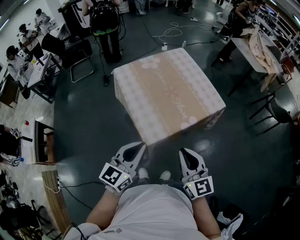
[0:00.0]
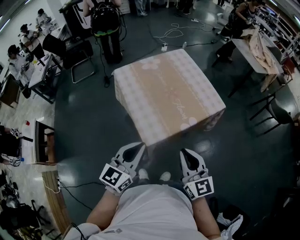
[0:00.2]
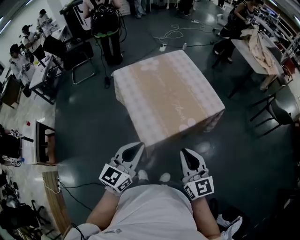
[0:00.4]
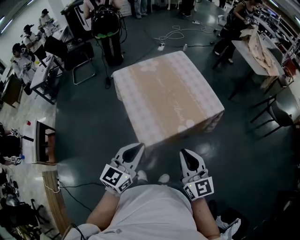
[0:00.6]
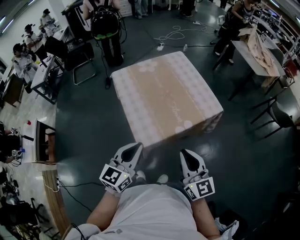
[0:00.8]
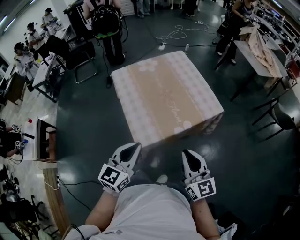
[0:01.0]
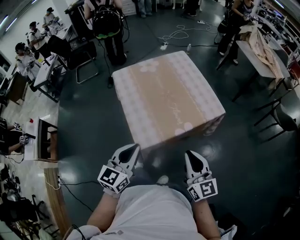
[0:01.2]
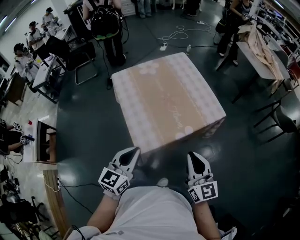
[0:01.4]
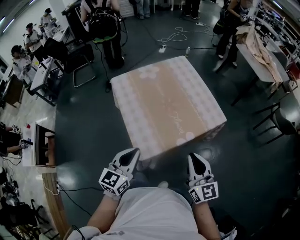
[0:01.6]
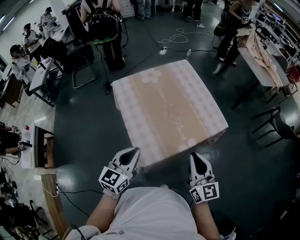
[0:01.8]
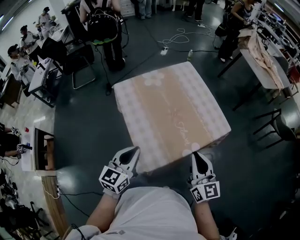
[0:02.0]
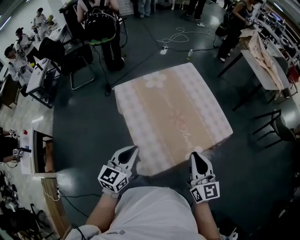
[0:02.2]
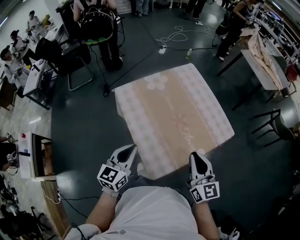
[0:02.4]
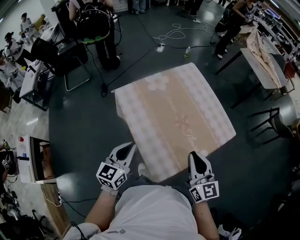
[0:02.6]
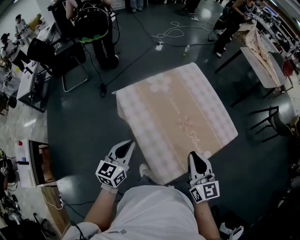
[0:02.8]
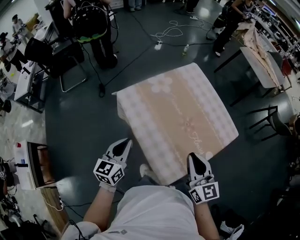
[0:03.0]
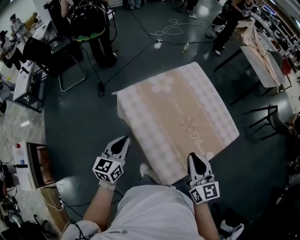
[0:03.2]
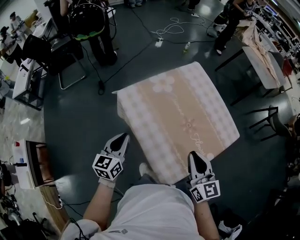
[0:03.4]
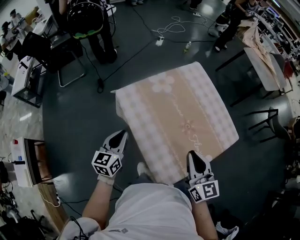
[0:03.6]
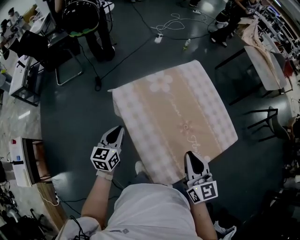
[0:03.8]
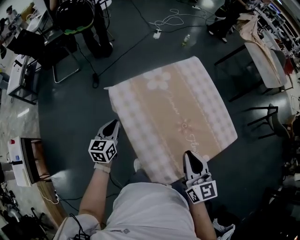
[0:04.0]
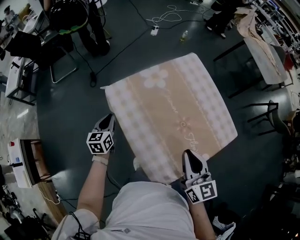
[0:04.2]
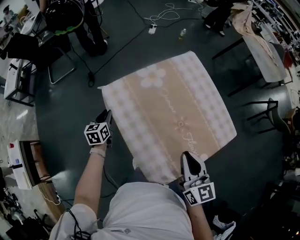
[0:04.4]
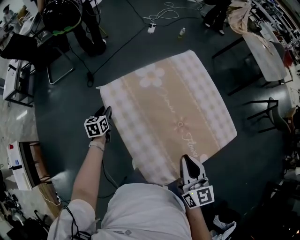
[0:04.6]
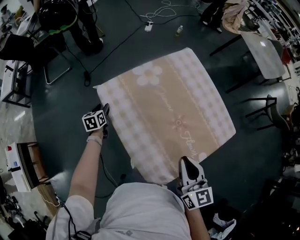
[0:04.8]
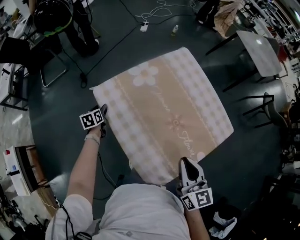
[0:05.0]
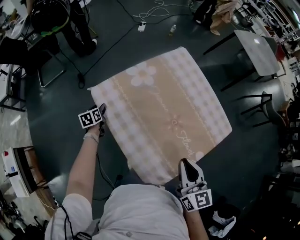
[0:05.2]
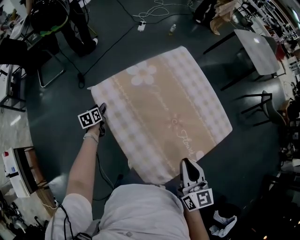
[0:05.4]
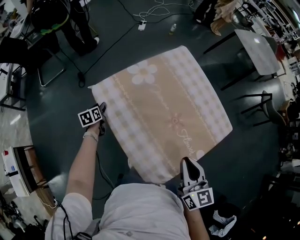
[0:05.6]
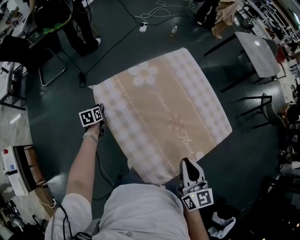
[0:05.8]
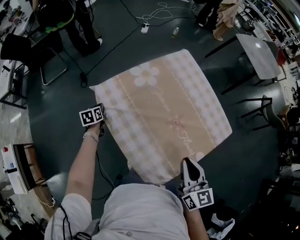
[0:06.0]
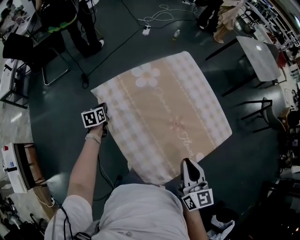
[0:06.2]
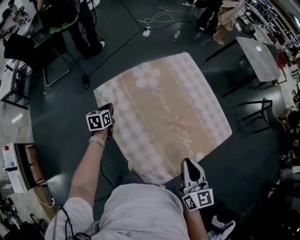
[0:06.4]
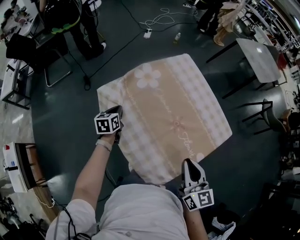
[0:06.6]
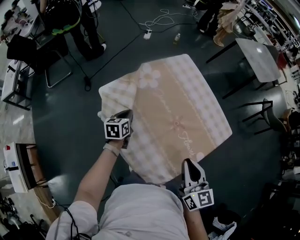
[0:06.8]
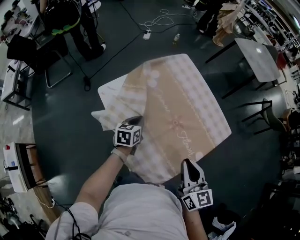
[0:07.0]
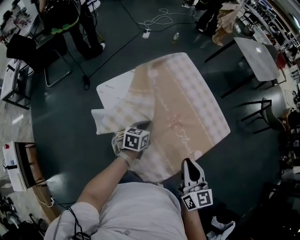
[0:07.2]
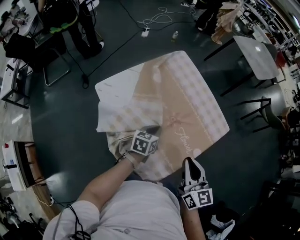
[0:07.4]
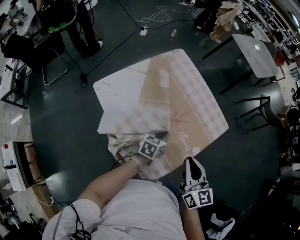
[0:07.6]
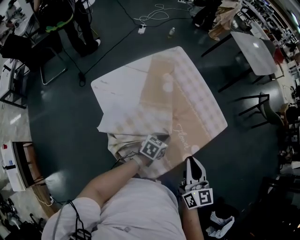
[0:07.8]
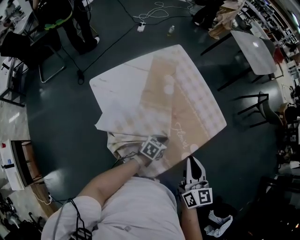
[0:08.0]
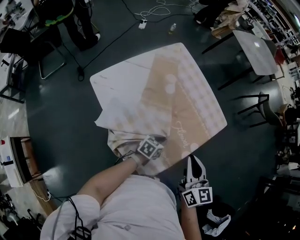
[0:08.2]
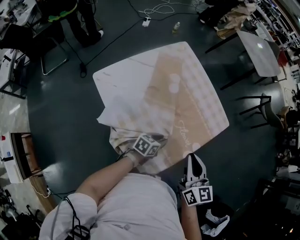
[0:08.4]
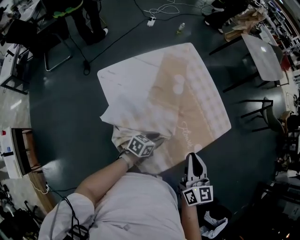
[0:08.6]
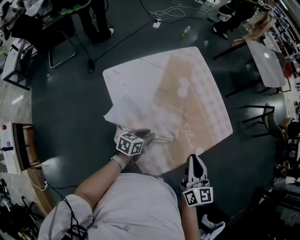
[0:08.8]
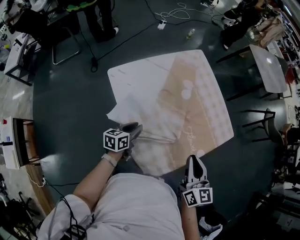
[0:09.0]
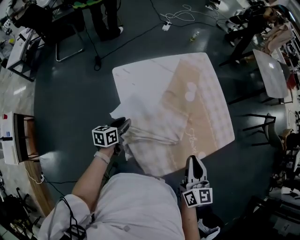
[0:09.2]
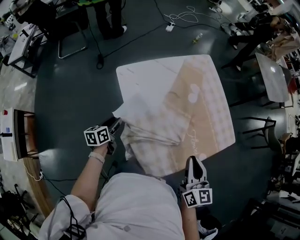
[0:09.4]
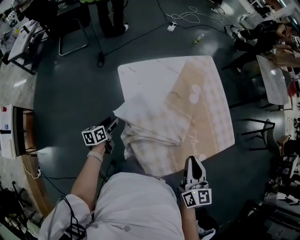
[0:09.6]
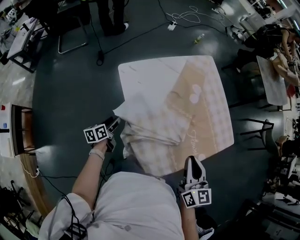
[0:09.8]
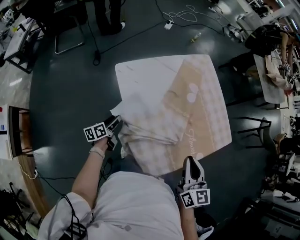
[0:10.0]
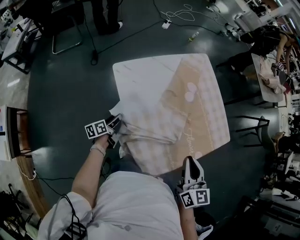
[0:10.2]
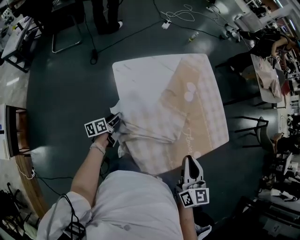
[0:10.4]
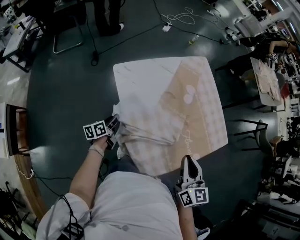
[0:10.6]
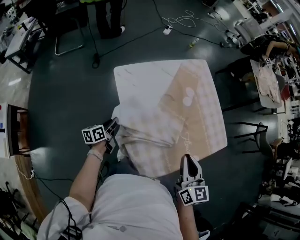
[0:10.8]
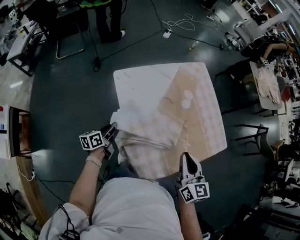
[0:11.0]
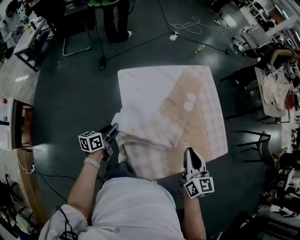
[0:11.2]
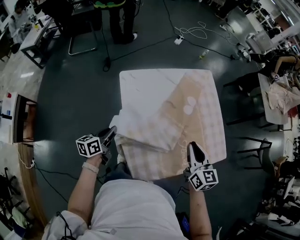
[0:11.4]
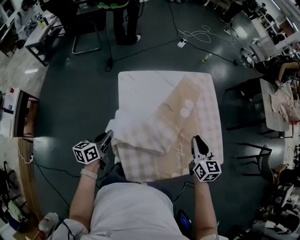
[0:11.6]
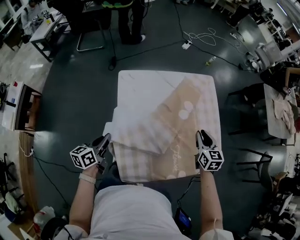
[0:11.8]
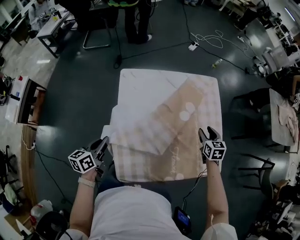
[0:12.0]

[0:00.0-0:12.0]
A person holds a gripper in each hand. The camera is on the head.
0:00.0 to 0:01.6: The right gripper travels forward and to the right by roughly 10 cm, while the left gripper travels forward by approximately 5 cm.
0:01.6 to 0:03.0: The grippers both shift to the left and forward by about 25 cm.
0:03.0 to 0:04.4: The right gripper goes some 5 cm forward, while the left gripper moves downward, forward and to the left, some 25 cm, and turns by approximately 30 degrees.
0:04.4 to 0:06.0: The left gripper shifts approximately 10 cm downward, and opens, then closes again.
0:06.0 to 0:07.6: The left gripper moves to the right, roughly 40 cm, and changes its angle by about 40 degrees. The right gripper ends up approximately 5 cm from where it was.
0:07.6 to 0:09.0: The left gripper shifts approximately 20 cm to the left and backward, turns by approximately 30 degrees, and opens up.
0:09.0 to 0:10.4: The left gripper shifts about 15 cm to the left and downward, turns by approximately 30 degrees, and opens up.
0:10.4 to 0:12.0: The left gripper goes approximately 20 cm upward and backward, rotates about 20 degrees, and closes up. Meanwhile the right gripper heads forward, to the right and downward, covering about 35 cm, changes its angle by about 30 degrees, and opens.

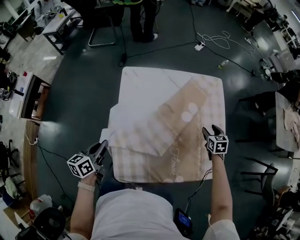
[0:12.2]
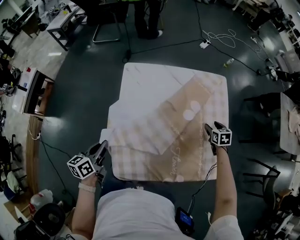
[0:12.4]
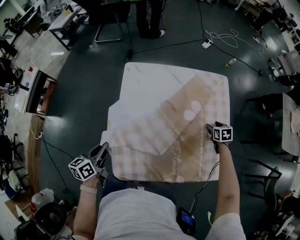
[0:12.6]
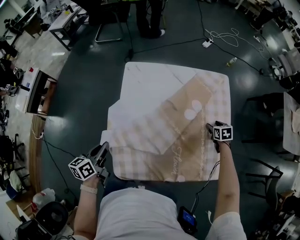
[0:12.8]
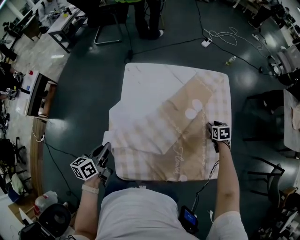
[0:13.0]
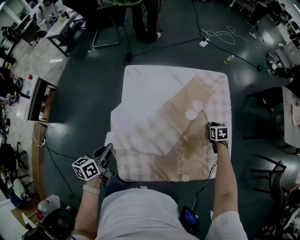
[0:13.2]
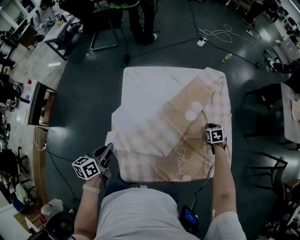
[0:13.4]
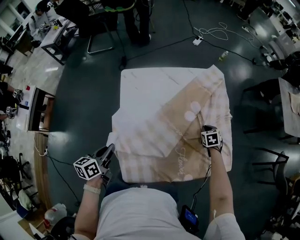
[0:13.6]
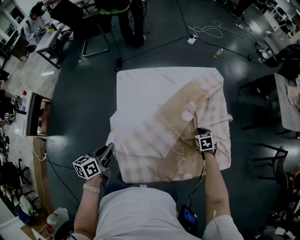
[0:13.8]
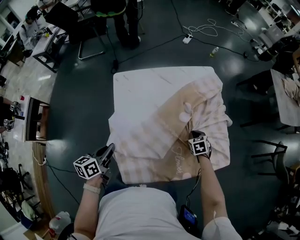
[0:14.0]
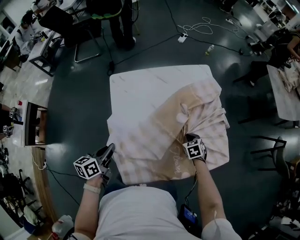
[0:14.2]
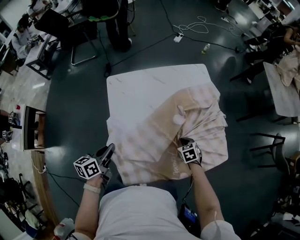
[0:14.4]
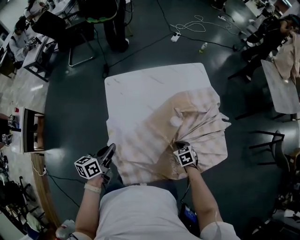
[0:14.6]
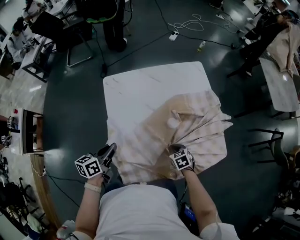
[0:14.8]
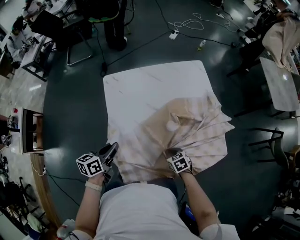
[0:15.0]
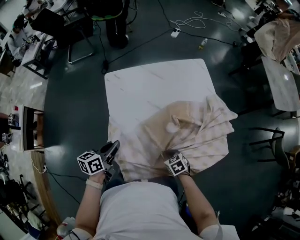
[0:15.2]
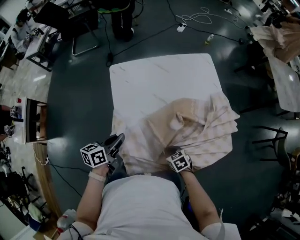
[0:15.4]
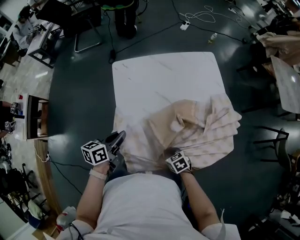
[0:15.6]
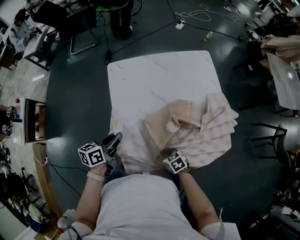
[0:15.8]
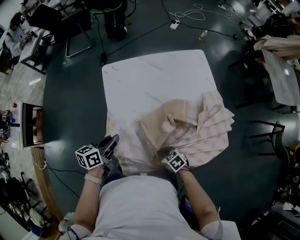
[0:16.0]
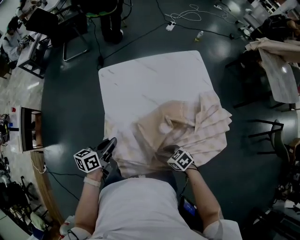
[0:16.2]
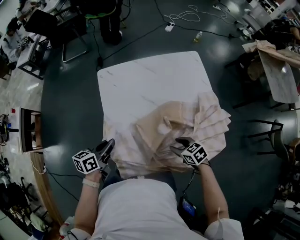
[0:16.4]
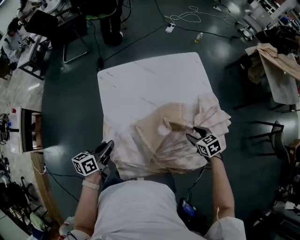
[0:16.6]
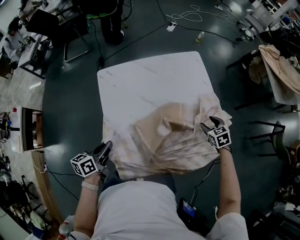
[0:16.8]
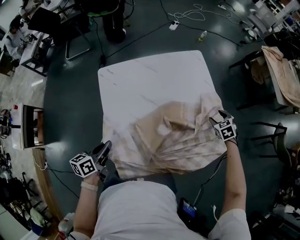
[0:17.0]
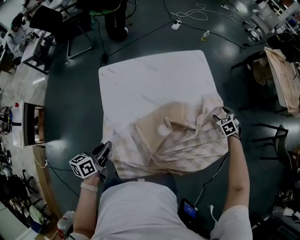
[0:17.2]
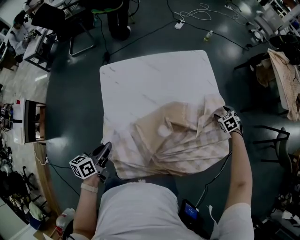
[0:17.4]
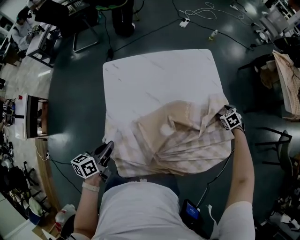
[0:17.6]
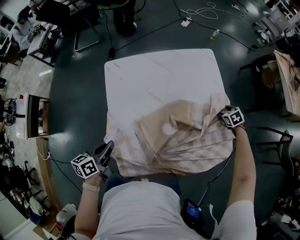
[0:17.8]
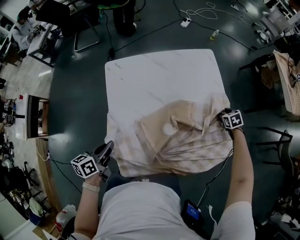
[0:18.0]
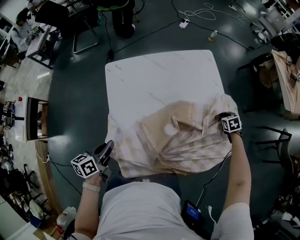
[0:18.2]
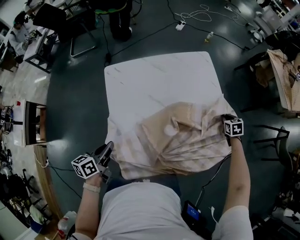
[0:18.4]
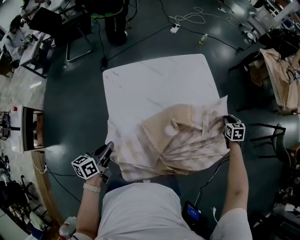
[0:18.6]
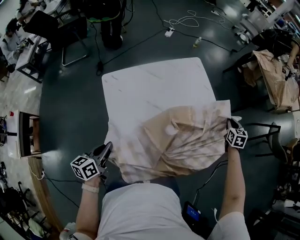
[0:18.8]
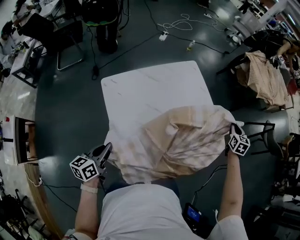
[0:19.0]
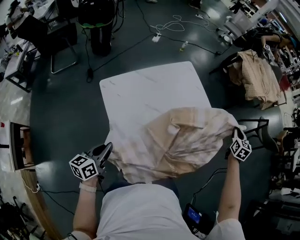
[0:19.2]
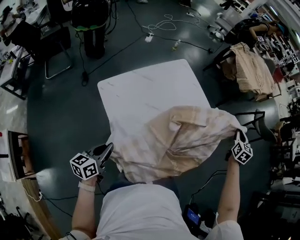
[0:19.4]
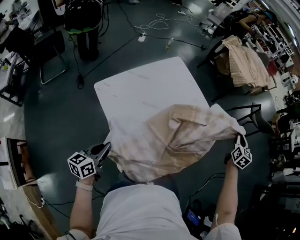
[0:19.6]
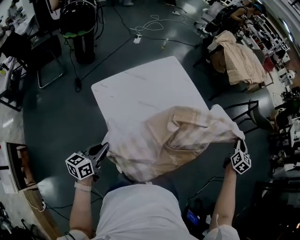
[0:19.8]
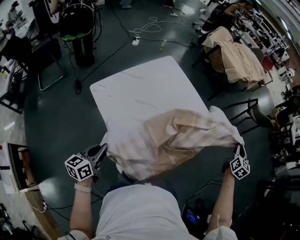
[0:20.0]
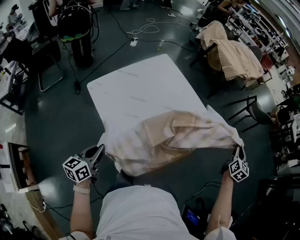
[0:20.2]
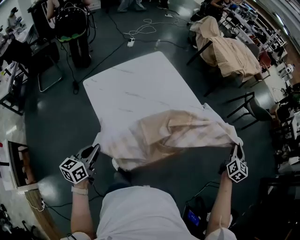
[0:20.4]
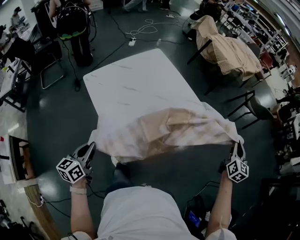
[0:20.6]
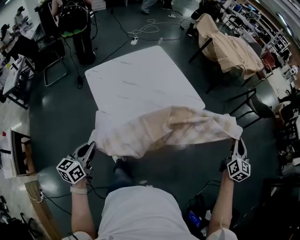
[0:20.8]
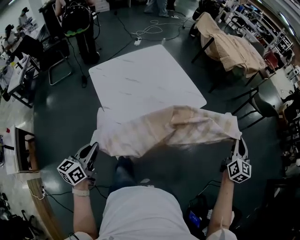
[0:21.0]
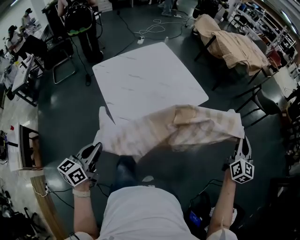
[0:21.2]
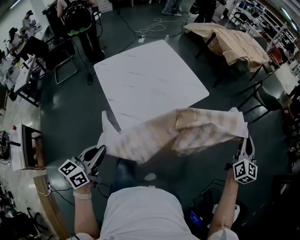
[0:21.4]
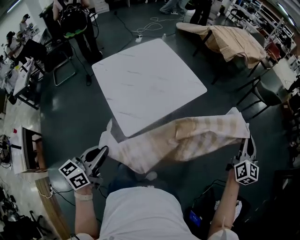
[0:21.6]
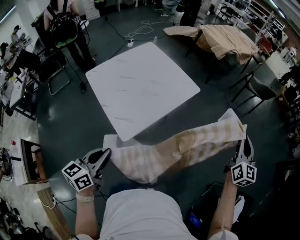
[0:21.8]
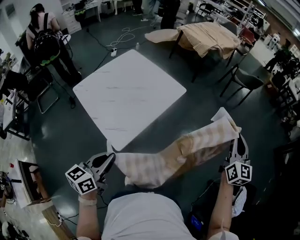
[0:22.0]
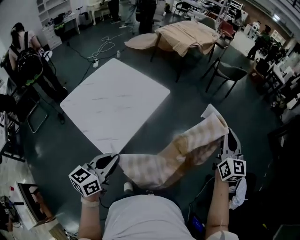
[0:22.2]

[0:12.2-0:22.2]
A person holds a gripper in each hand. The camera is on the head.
0:12.2 to 0:13.6: The right gripper is displaced downward by about 10 cm, and closes.
0:13.6 to 0:15.0: The left gripper shifts some 5 cm to the right, while the right gripper travels backward and to the left by about 25 cm.
0:15.0 to 0:16.4: The right gripper travels upward by approximately 5 cm, reaches approximately 5 cm to the left, then returns, and opens its fingers.
0:16.4 to 0:18.0: The right gripper shifts by some 35 cm, and swivels some 30 degrees.
0:18.0 to 0:19.4: The right gripper travels upward by roughly 30 cm, points its fingers about 50 degrees further upward, and closes its fingers. The left gripper moves roughly 10 cm, and rotates approximately 30 degrees.
0:19.4 to 0:20.8: The right gripper moves backward and to the right, roughly 30 cm; the left gripper heads to the right and backward, covering roughly 20 cm.
0:20.8 to 0:22.2: The left gripper heads to the right and upward, covering some 20 cm, and changes its angle by approximately 40 degrees; the right gripper travels backward and upward by roughly 20 cm.

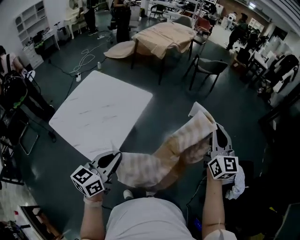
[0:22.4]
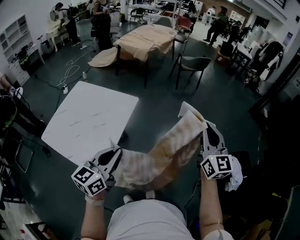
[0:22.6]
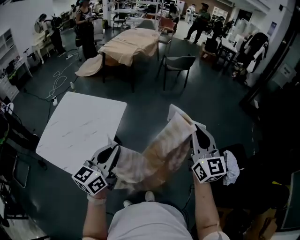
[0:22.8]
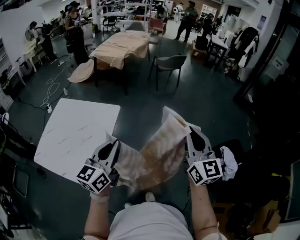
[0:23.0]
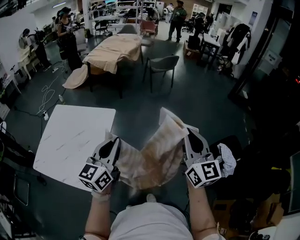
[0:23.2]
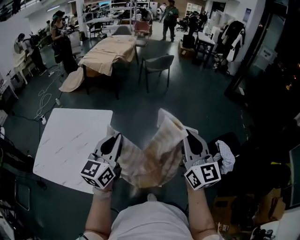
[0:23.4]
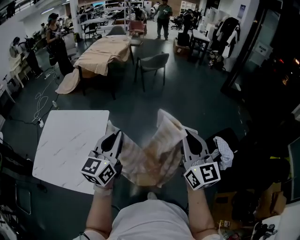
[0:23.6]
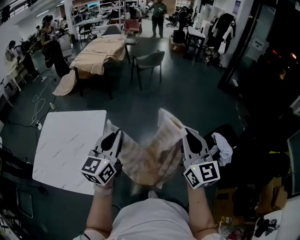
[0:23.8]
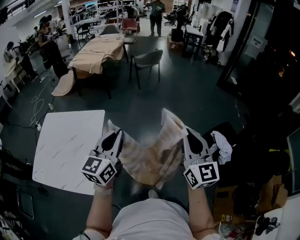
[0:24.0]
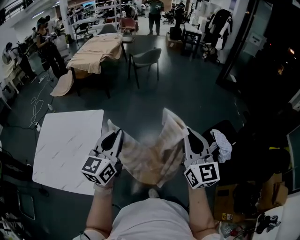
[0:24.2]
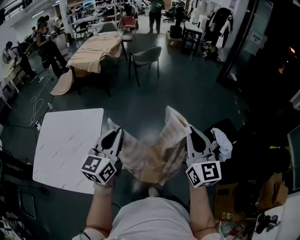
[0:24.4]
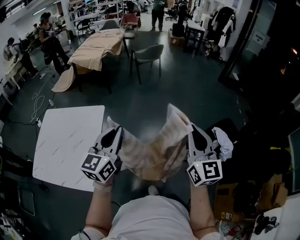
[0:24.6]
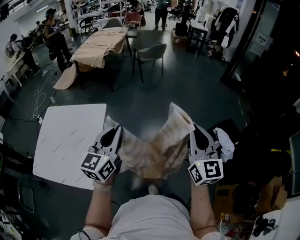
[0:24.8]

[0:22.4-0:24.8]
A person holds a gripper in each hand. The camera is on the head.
0:22.4 to 0:23.6: The right gripper travels backward, to the right and upward by roughly 15 cm, while the left gripper moves to the right, forward and upward, approximately 20 cm, and changes its angle by some 20 degrees.
0:23.6 to 0:24.8: The right gripper travels to the right by roughly 5 cm.
